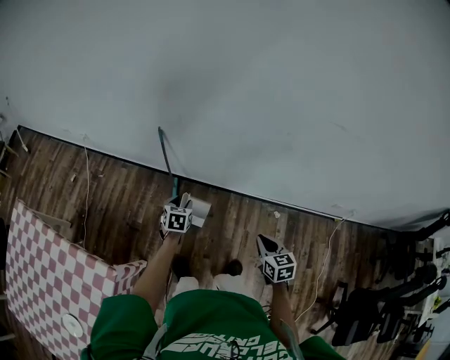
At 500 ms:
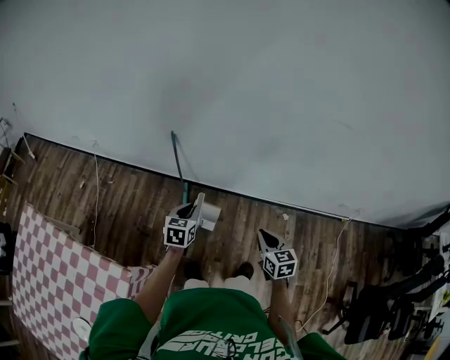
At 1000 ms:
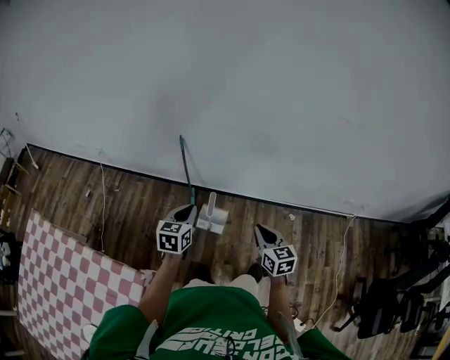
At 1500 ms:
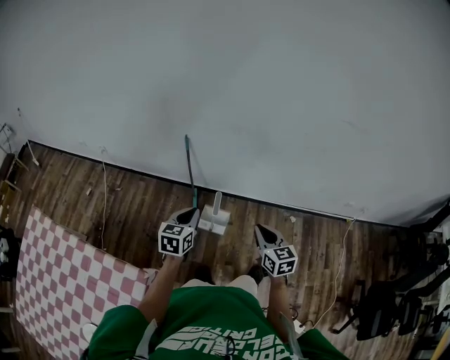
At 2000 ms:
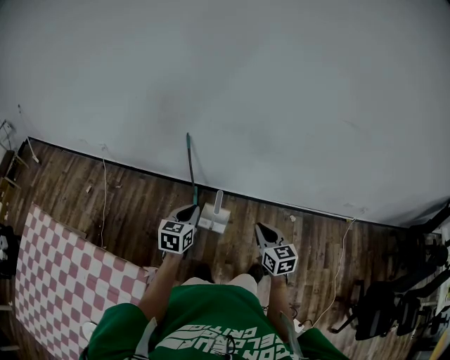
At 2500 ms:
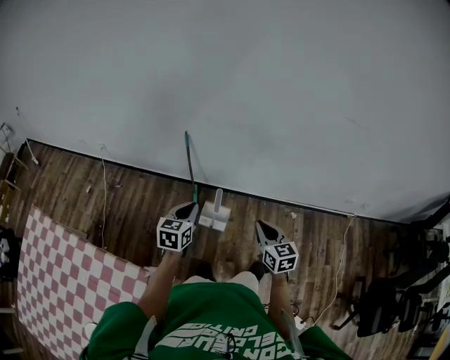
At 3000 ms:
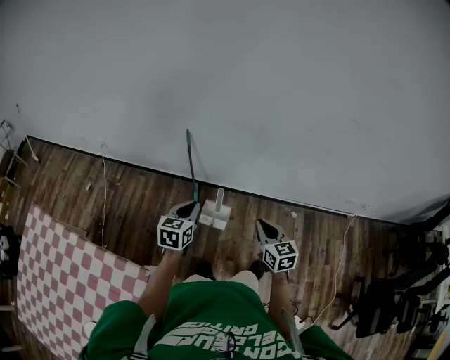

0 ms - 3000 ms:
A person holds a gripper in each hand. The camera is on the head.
0 ms - 1500 ms: The left gripper travels upward, backward and to the left by about 20 cm, changes its angle by roughly 20 degrees, and closes. Meanwhile the right gripper shifts about 15 cm to the left.
1500 ms - 3000 ms: The grippers make only small movements.

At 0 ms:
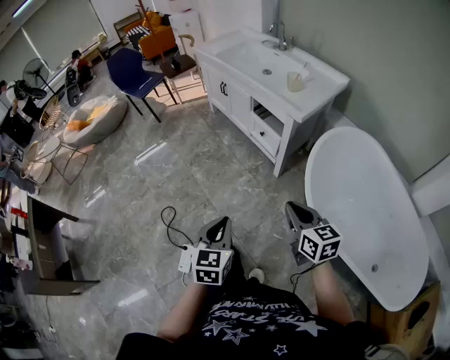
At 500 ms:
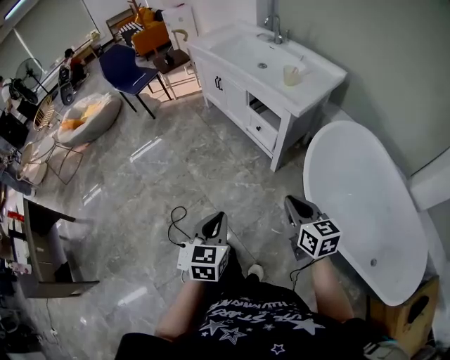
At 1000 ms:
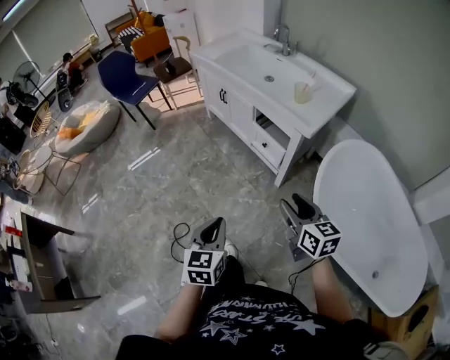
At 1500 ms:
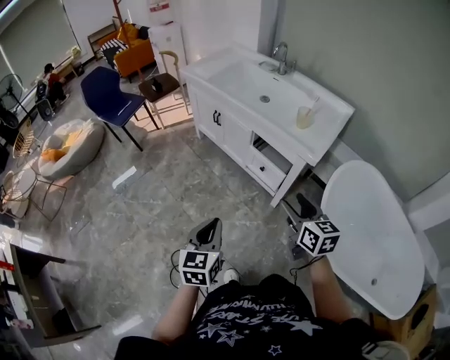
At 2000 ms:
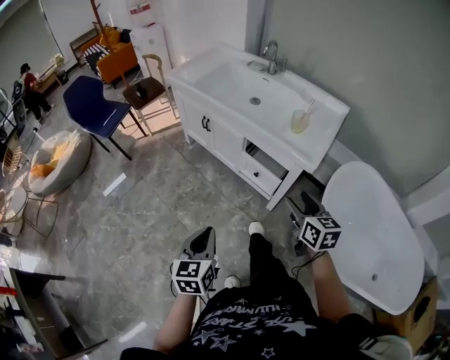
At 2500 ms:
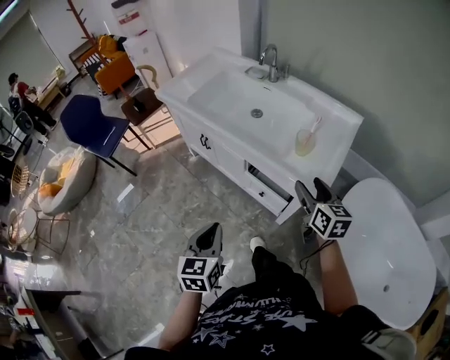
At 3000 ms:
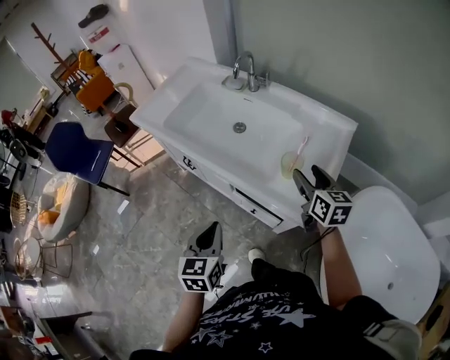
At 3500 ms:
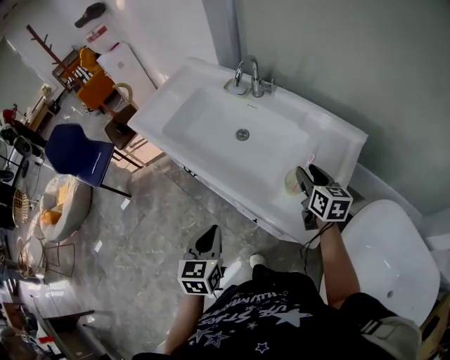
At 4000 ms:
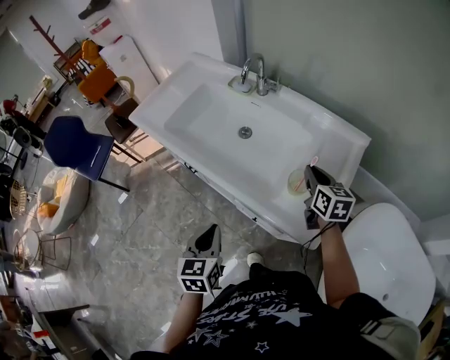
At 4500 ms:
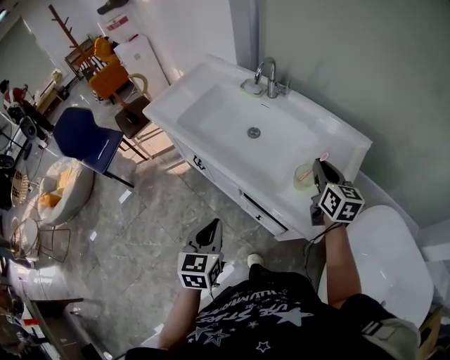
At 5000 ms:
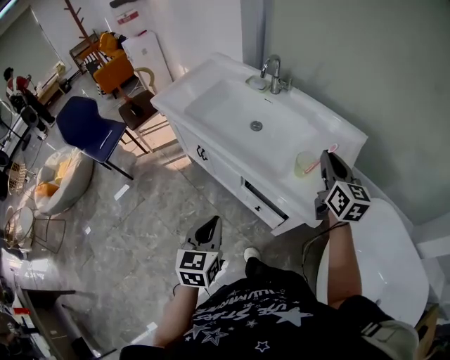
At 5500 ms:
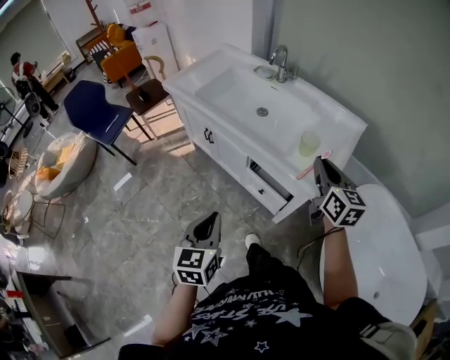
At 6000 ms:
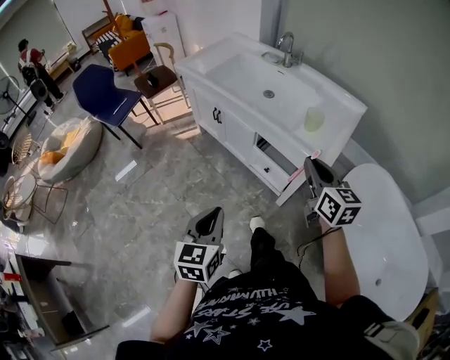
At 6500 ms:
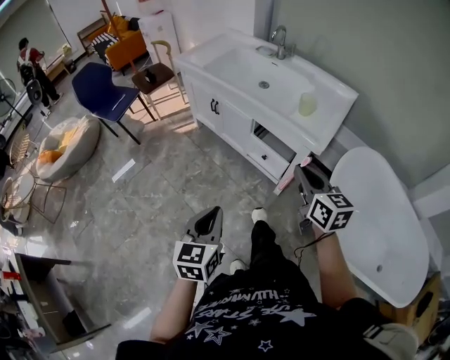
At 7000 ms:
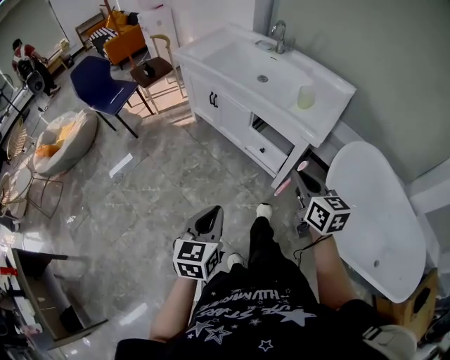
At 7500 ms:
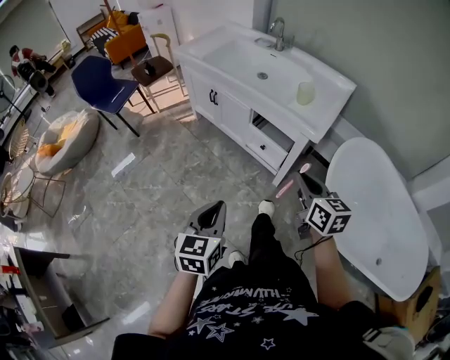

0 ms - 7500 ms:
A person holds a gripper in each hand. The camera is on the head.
0 ms - 2000 ms: The left gripper travels forward and to the left by roughly 35 cm. The right gripper shifts some 35 cm forward, and opens.
2000 ms - 4000 ms: Both grippers travel together forward, some 40 cm. The right gripper closes.
4000 ms - 5500 ms: The left gripper is displaced backward by roughly 20 cm. Meanwhile the right gripper shifts approximately 25 cm backward and upward.
5500 ms - 7500 ms: Both grippers travel together backward, approximately 25 cm.

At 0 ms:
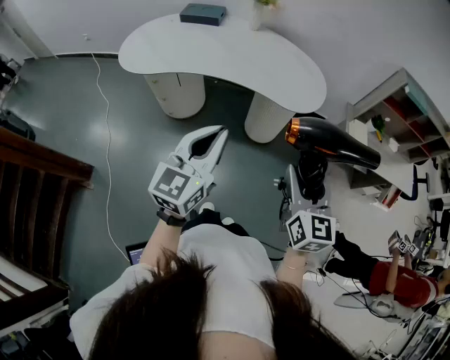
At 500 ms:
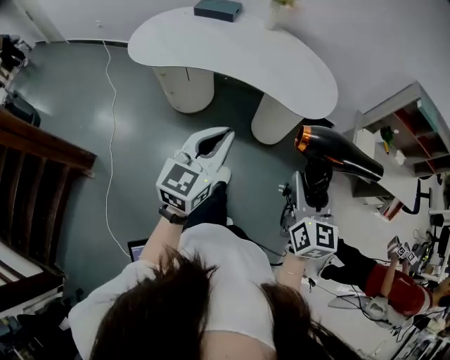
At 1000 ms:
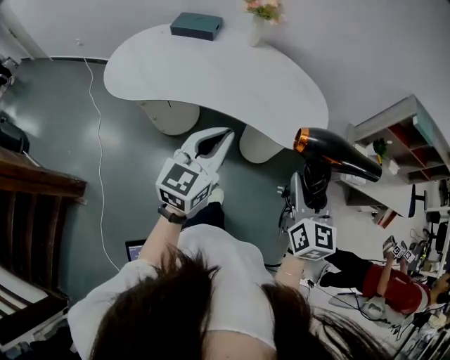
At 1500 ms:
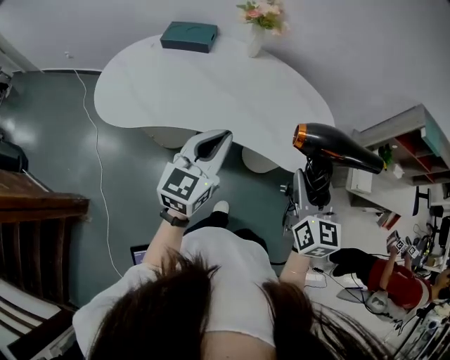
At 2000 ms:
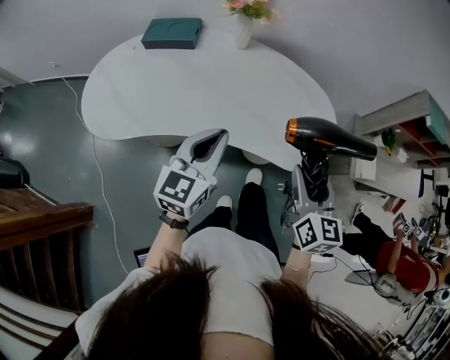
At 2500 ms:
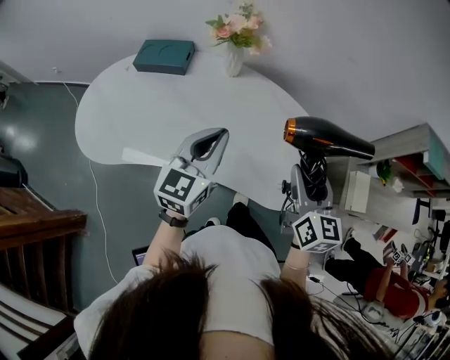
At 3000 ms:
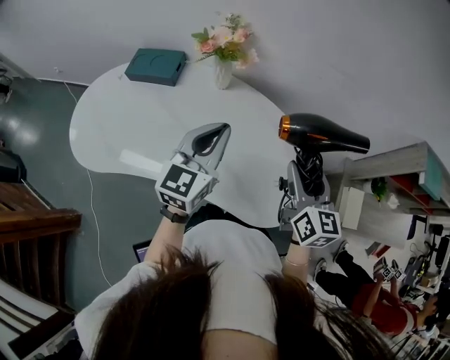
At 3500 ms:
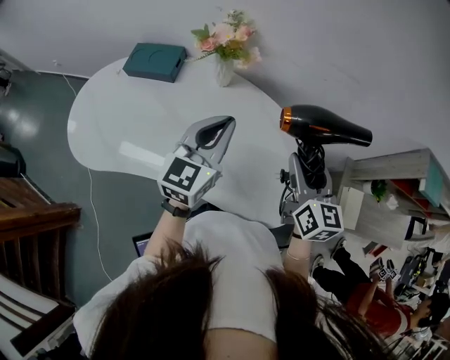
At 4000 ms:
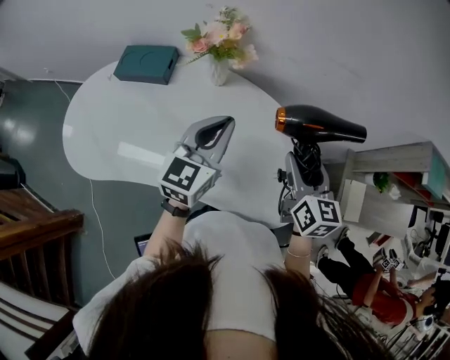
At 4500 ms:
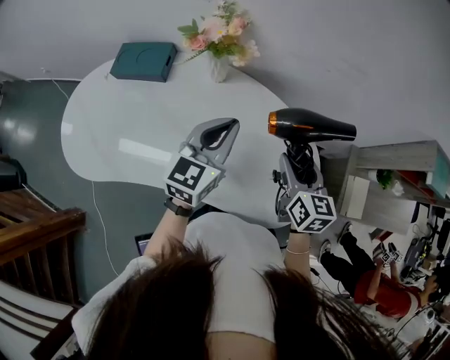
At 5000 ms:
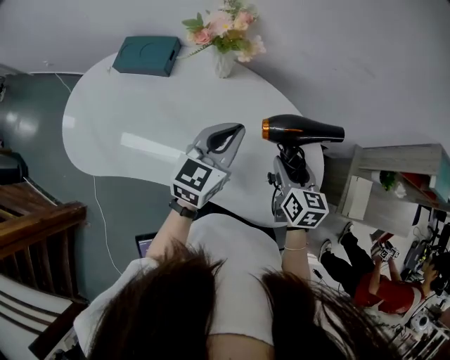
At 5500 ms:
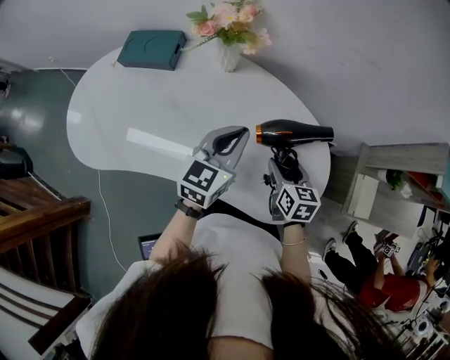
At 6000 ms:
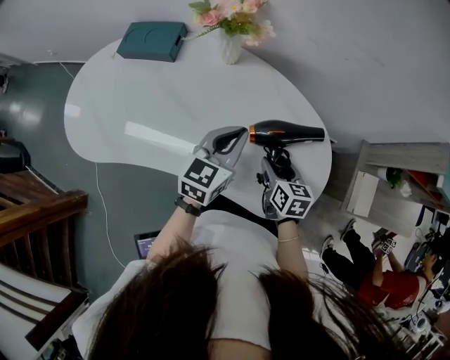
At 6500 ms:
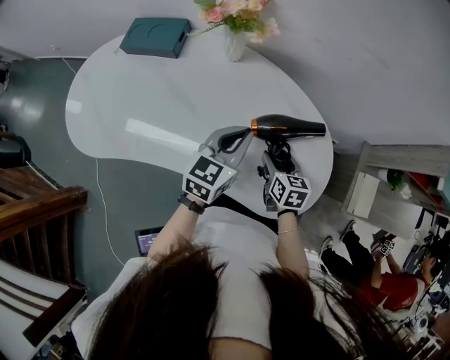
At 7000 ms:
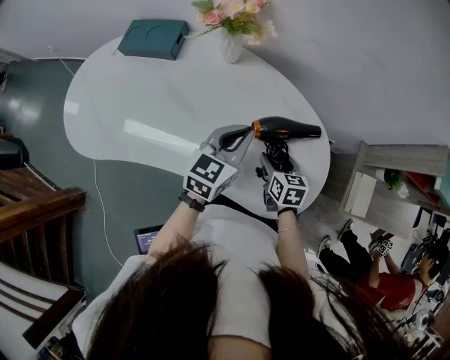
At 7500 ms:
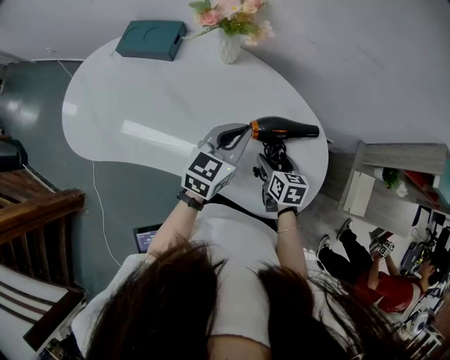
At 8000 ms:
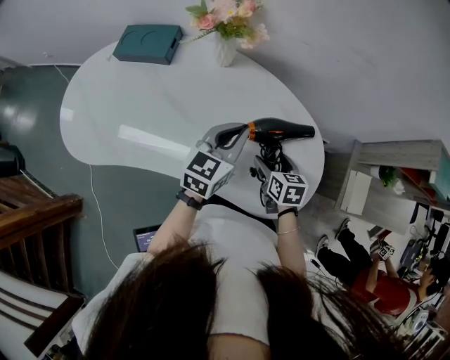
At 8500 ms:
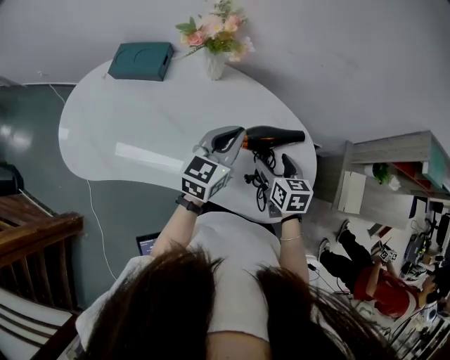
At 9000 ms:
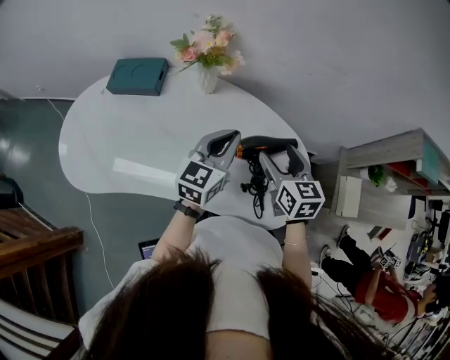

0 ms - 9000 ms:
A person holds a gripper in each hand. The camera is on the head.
0 ms - 2000 ms: Both grippers travel together forward, approximately 35 cm.
2000 ms - 4500 ms: The grippers both shift forward by about 25 cm.
4500 ms - 7000 ms: The right gripper heads downward, covering about 20 cm, and swivels some 20 degrees, while the left gripper travels downward by roughly 10 cm.
7000 ms - 9000 ms: The left gripper goes some 5 cm upward. The right gripper goes some 20 cm upward.

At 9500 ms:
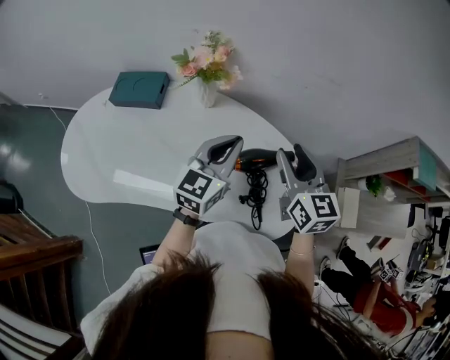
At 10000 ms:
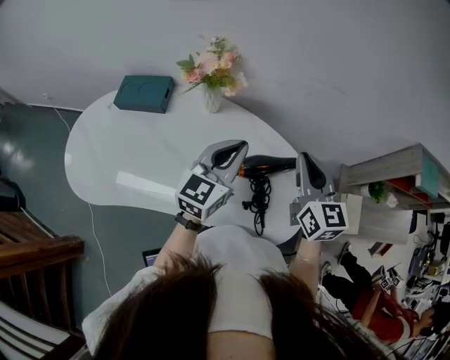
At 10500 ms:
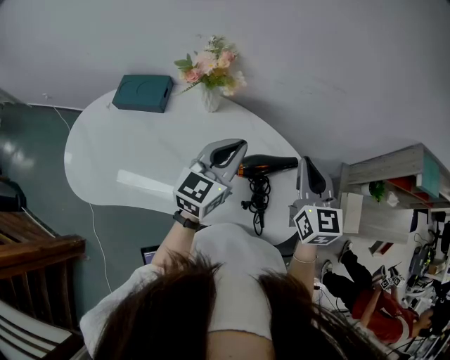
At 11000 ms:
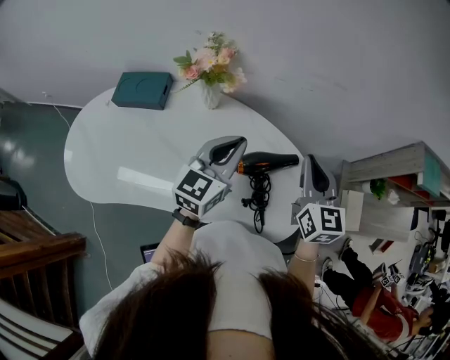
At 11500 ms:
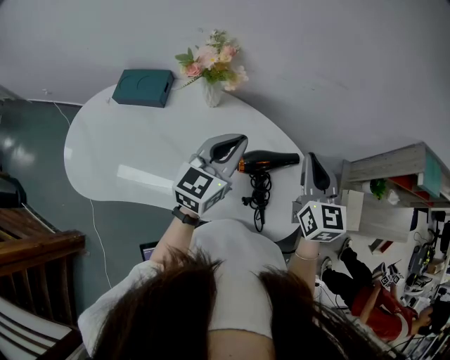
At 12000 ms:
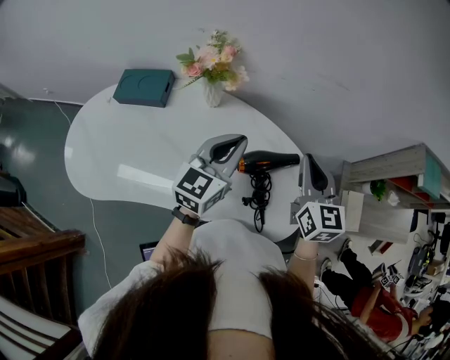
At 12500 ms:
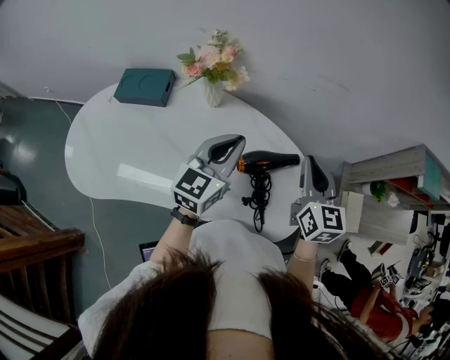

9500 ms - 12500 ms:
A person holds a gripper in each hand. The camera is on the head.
9500 ms - 11000 ms: The right gripper closes up.
11000 ms - 12500 ms: The two grippers keep their place.

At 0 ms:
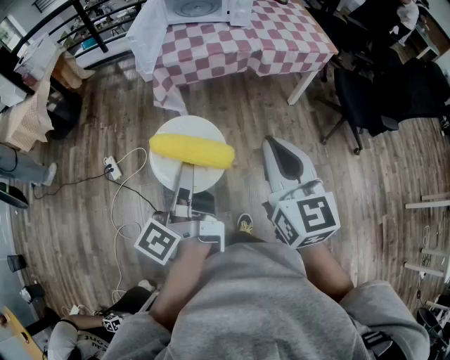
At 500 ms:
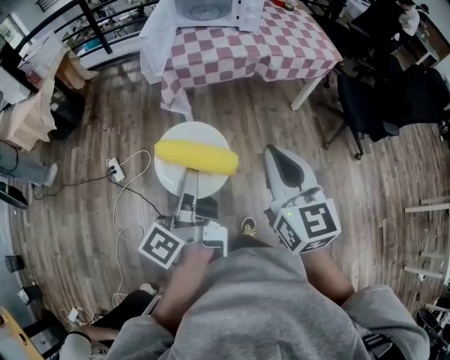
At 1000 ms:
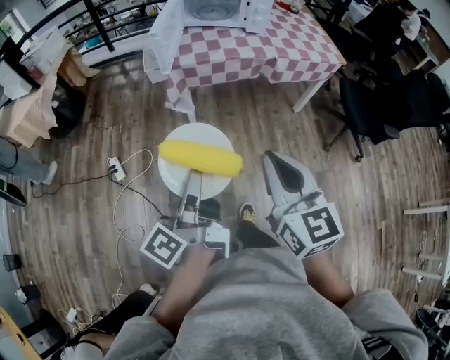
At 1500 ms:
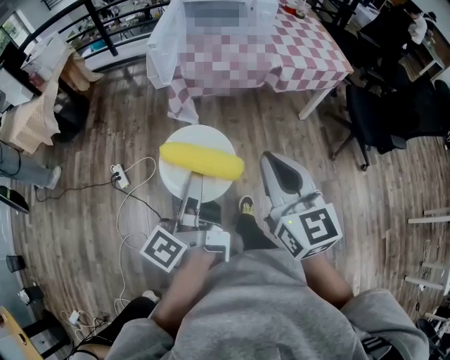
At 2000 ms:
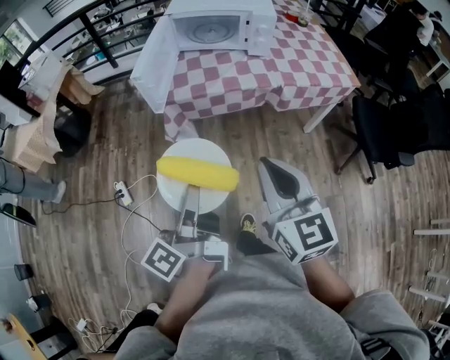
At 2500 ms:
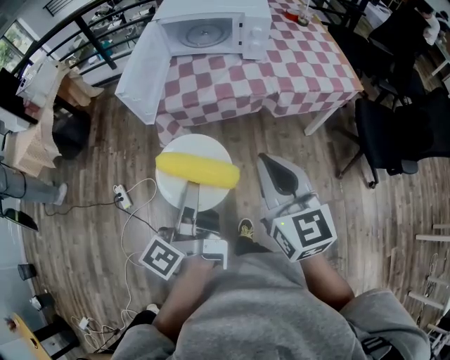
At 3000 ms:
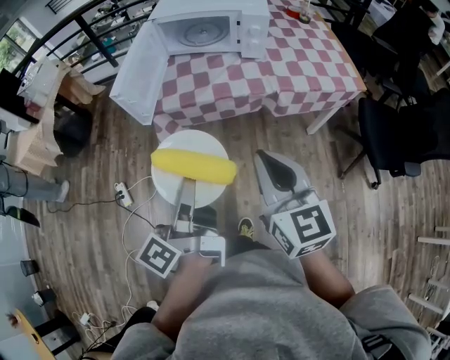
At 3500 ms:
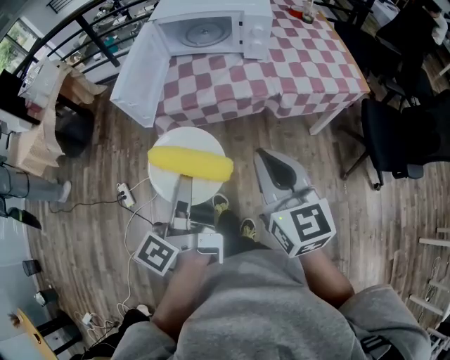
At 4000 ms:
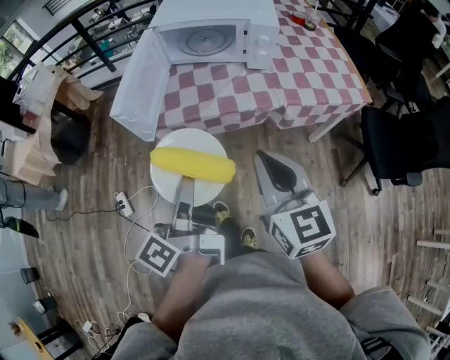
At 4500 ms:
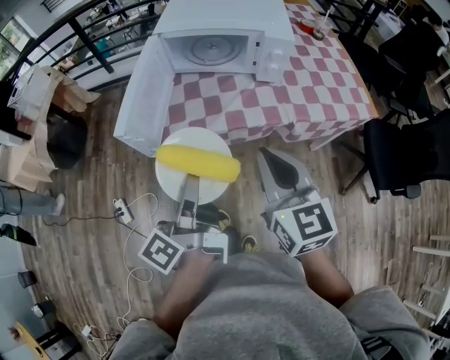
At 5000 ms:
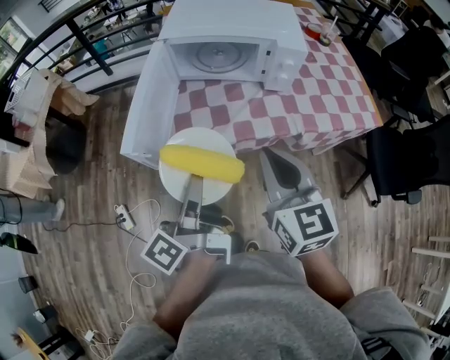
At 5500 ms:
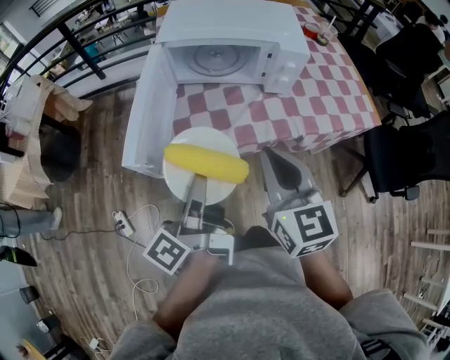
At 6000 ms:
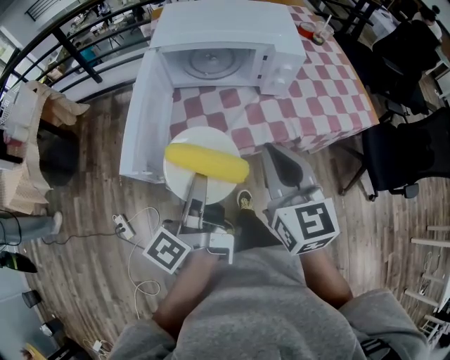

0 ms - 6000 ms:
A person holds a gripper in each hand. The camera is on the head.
0 ms - 2000 ms: The two grippers go some 15 cm forward.
2000 ms - 4000 ms: Both grippers move forward, about 15 cm.
4000 ms - 6000 ms: Both grippers move forward, approximately 15 cm.
